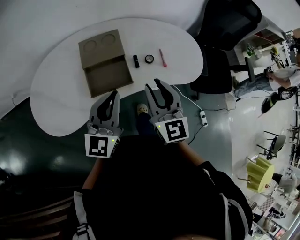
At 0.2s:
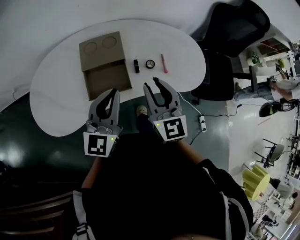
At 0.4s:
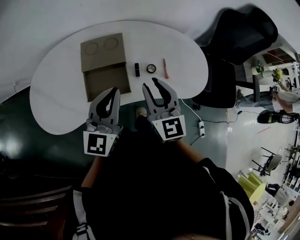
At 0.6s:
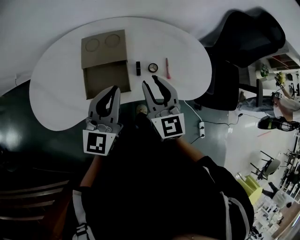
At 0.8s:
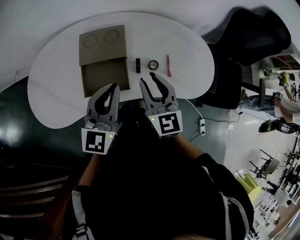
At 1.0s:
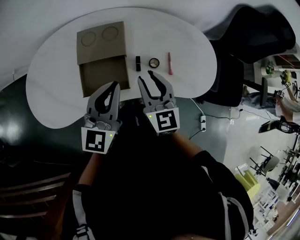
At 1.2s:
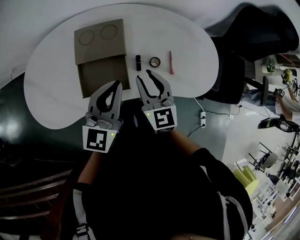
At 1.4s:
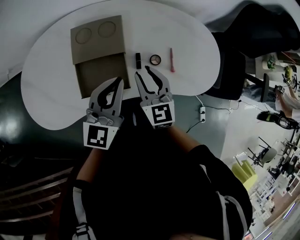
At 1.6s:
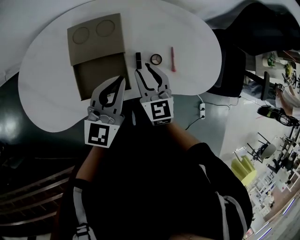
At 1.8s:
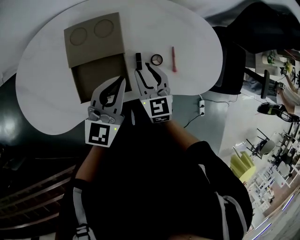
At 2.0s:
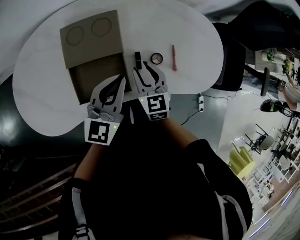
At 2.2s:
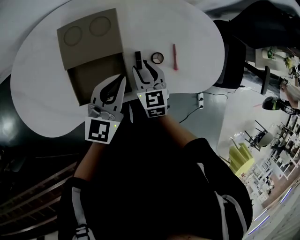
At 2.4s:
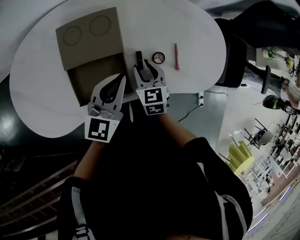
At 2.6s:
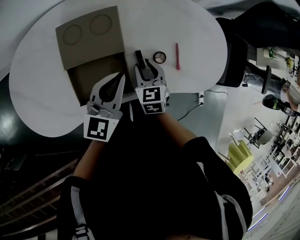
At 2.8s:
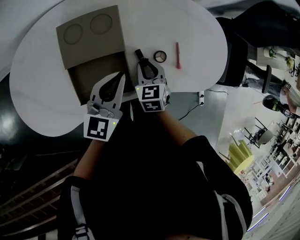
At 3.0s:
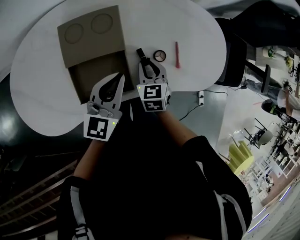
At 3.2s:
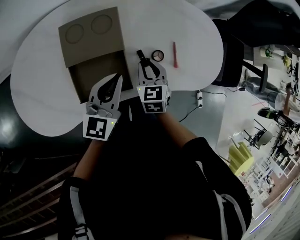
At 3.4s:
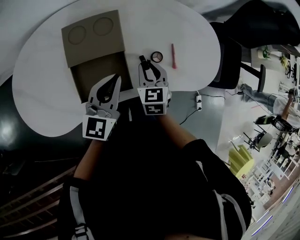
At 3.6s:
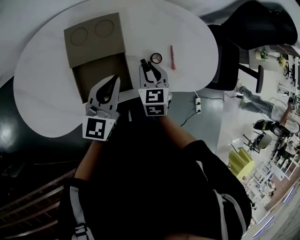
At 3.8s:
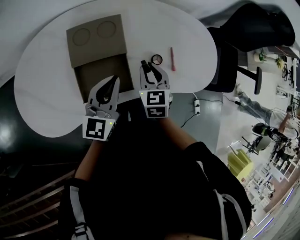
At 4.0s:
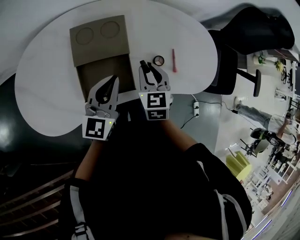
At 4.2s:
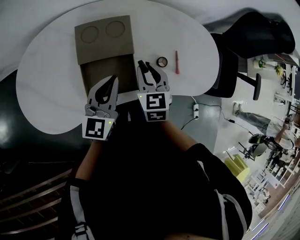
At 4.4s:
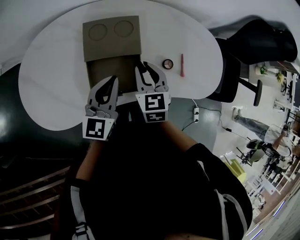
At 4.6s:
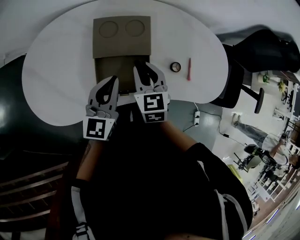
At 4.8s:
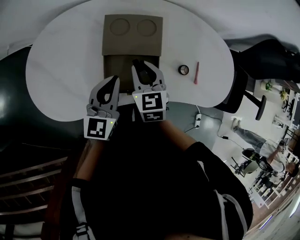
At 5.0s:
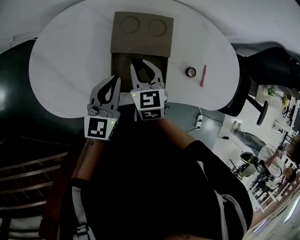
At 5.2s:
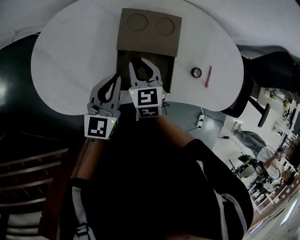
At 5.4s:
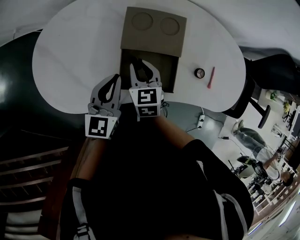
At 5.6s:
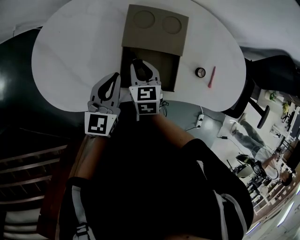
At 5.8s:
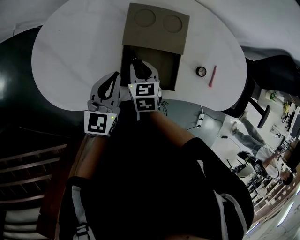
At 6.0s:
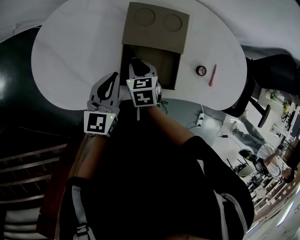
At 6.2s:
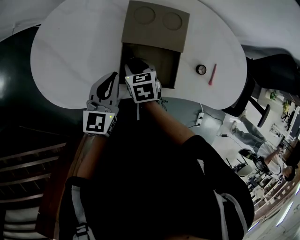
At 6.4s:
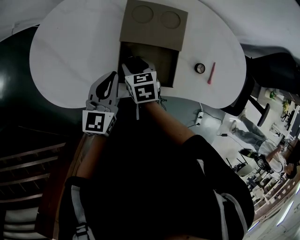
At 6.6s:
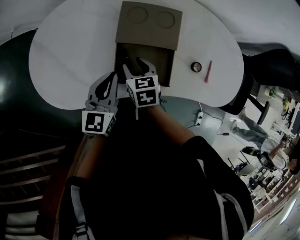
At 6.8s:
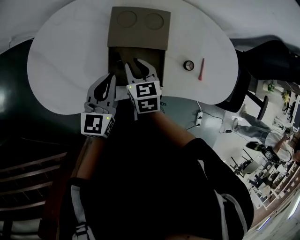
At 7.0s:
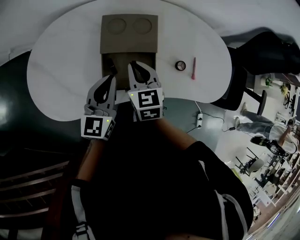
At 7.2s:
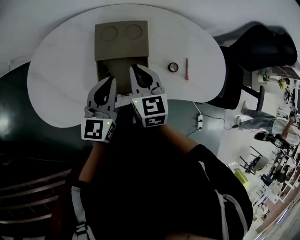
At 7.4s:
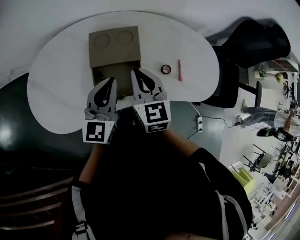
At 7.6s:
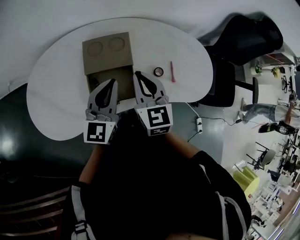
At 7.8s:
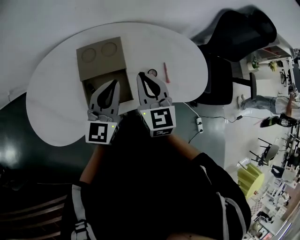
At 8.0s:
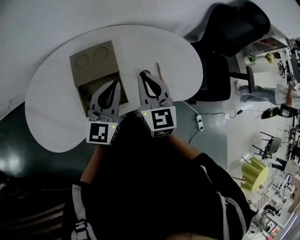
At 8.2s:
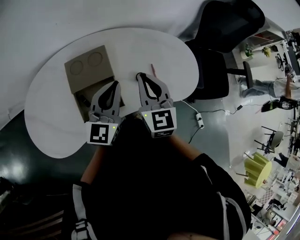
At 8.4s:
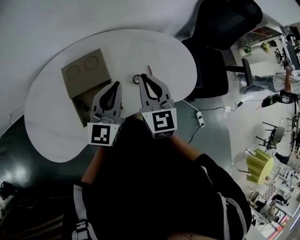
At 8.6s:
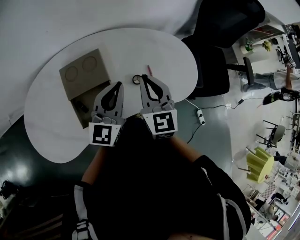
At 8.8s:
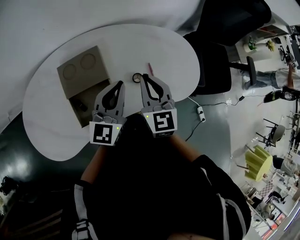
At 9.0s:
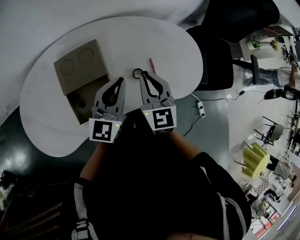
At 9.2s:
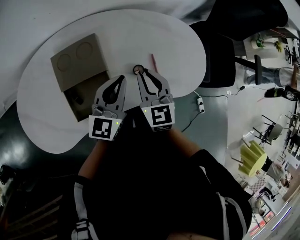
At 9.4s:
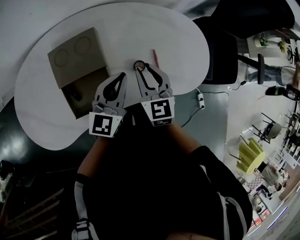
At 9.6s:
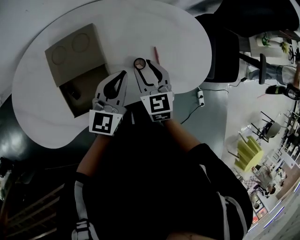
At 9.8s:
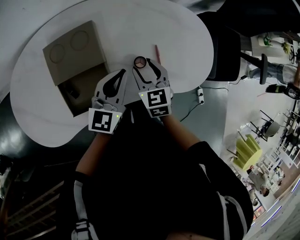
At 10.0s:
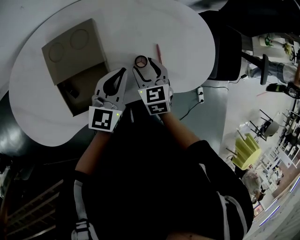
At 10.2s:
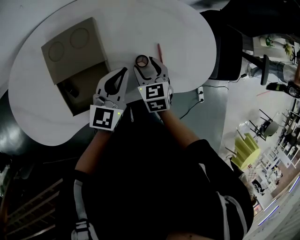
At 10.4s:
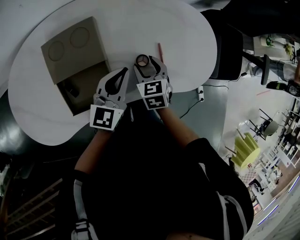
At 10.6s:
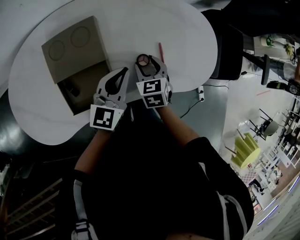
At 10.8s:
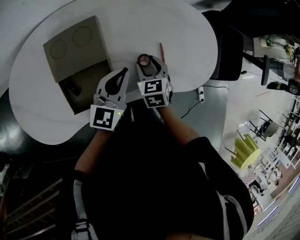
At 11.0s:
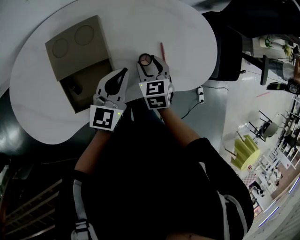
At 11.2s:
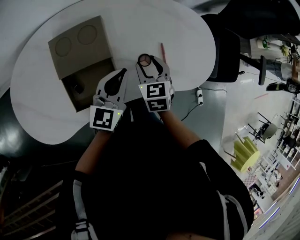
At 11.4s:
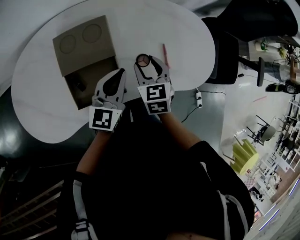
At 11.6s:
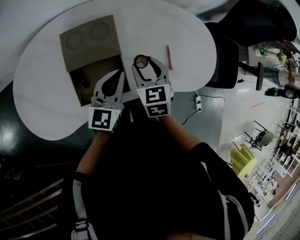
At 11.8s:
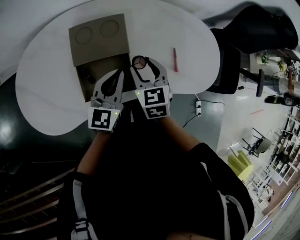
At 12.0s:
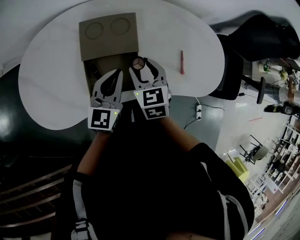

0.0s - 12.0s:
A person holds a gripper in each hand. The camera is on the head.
0.0s - 1.6s: Both grippers travel together forward and downward, about 20 cm.
1.6s - 3.0s: The left gripper moves downward, some 5 cm. The right gripper shifts approximately 10 cm downward, and changes its angle by roughly 30 degrees.
3.0s - 4.4s: The left gripper heads to the left, covering about 5 cm. Meanwhile the right gripper heads upward and to the left, covering about 15 cm.
4.4s - 6.0s: Both grippers travel together to the left and downward, about 15 cm. The right gripper turns by some 20 degrees.
6.0s - 7.6s: The right gripper travels upward and to the right by approximately 30 cm, tips its fingers upward by roughly 40 degrees, and opens, then closes again, while the left gripper moves to the right and upward, approximately 20 cm, and turns by some 20 degrees.
7.6s - 9.0s: The two grippers go about 15 cm to the right and forward.
9.0s - 10.4s: The right gripper is displaced downward by about 20 cm, points its fingers about 30 degrees further downward, and opens its fingers, while the left gripper travels downward by some 10 cm.
10.4s - 12.0s: The right gripper is displaced to the left and upward by approximately 15 cm; the left gripper heads to the left and backward, covering some 15 cm.

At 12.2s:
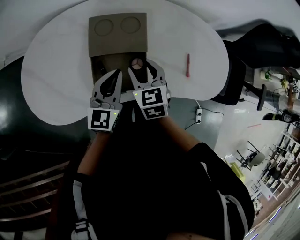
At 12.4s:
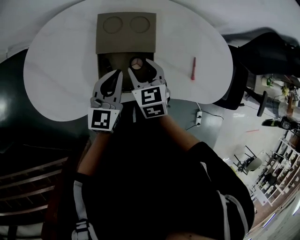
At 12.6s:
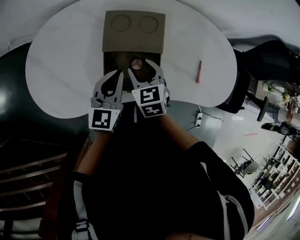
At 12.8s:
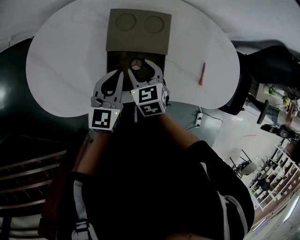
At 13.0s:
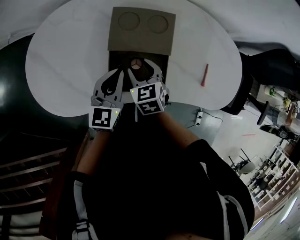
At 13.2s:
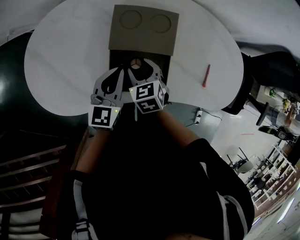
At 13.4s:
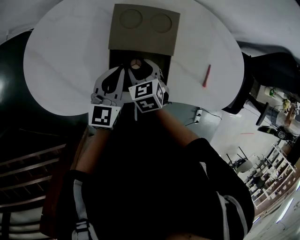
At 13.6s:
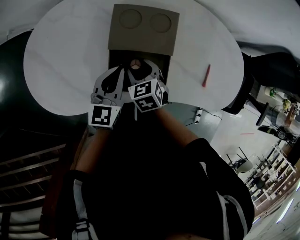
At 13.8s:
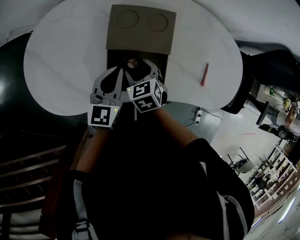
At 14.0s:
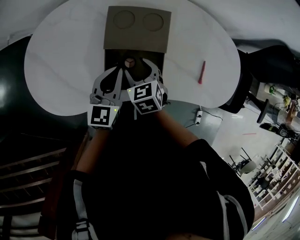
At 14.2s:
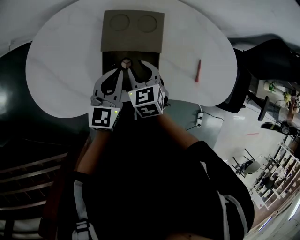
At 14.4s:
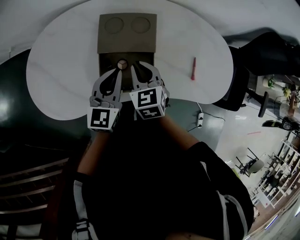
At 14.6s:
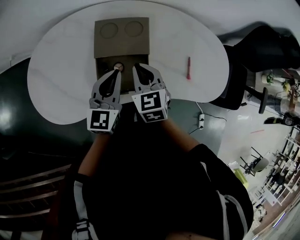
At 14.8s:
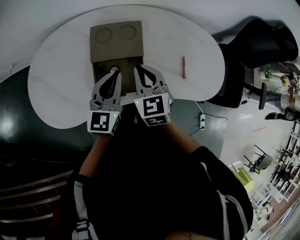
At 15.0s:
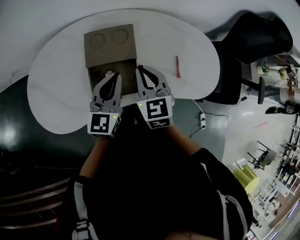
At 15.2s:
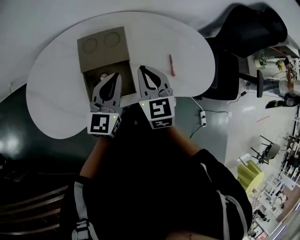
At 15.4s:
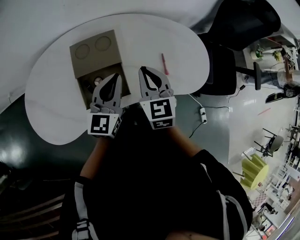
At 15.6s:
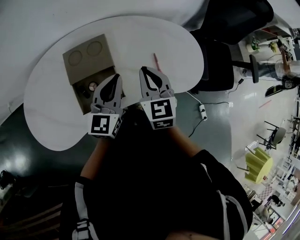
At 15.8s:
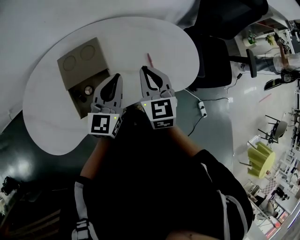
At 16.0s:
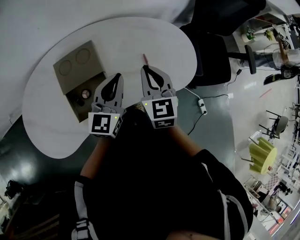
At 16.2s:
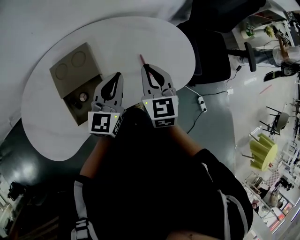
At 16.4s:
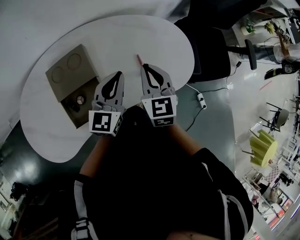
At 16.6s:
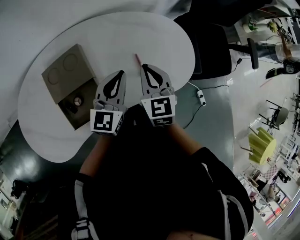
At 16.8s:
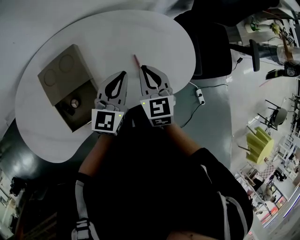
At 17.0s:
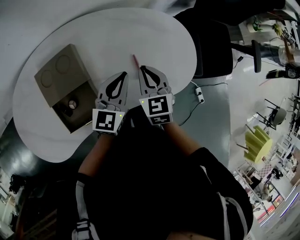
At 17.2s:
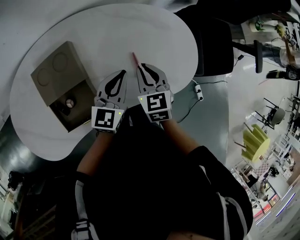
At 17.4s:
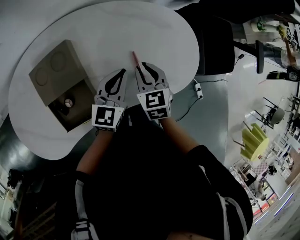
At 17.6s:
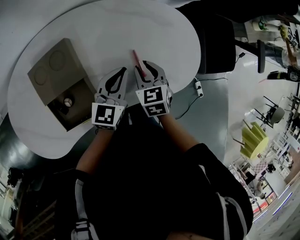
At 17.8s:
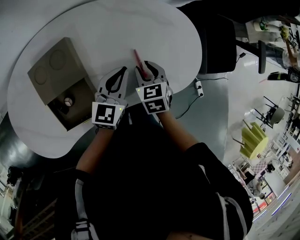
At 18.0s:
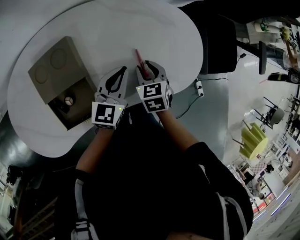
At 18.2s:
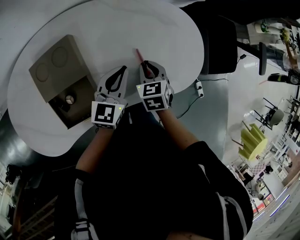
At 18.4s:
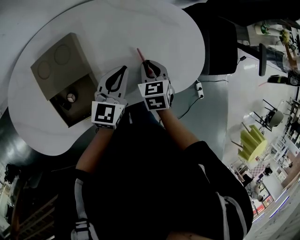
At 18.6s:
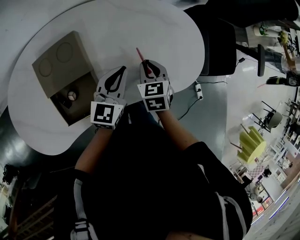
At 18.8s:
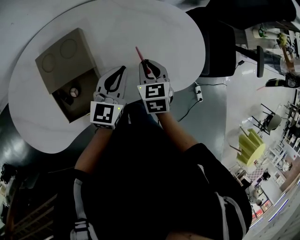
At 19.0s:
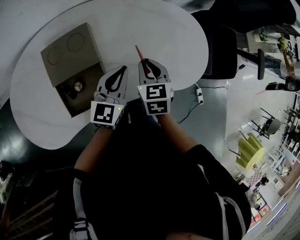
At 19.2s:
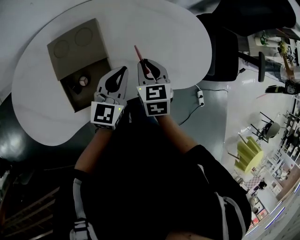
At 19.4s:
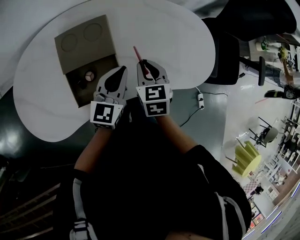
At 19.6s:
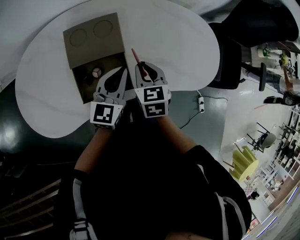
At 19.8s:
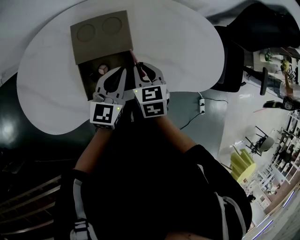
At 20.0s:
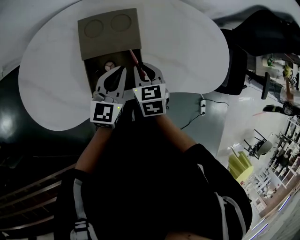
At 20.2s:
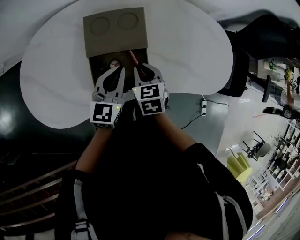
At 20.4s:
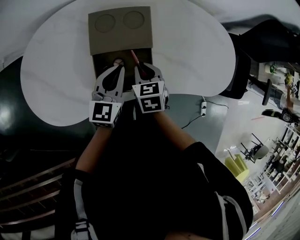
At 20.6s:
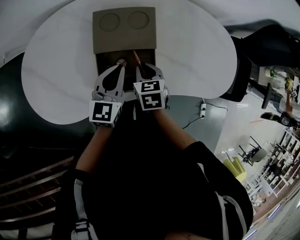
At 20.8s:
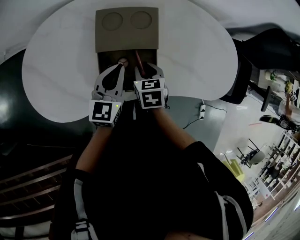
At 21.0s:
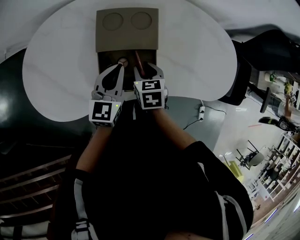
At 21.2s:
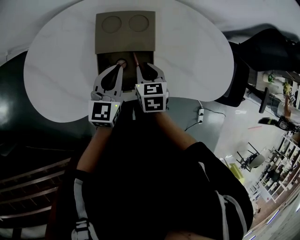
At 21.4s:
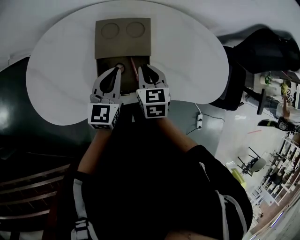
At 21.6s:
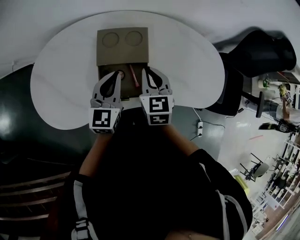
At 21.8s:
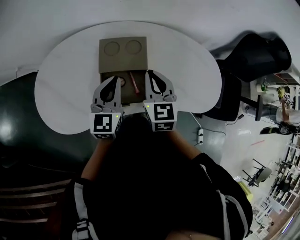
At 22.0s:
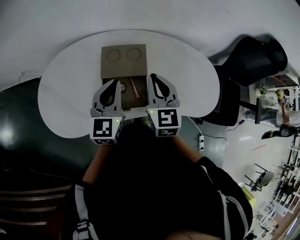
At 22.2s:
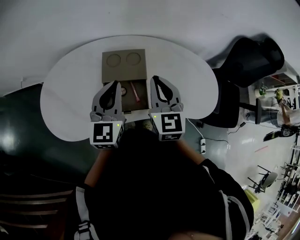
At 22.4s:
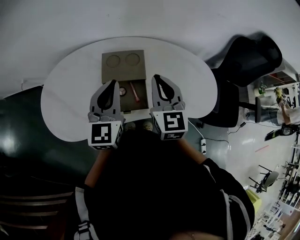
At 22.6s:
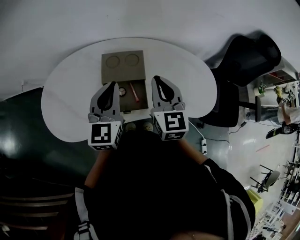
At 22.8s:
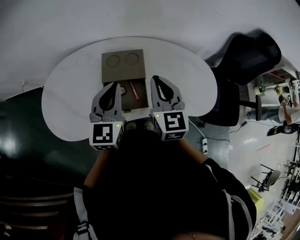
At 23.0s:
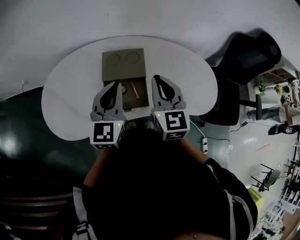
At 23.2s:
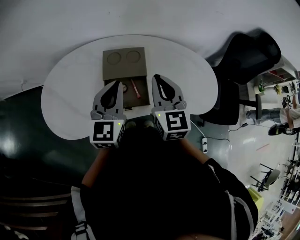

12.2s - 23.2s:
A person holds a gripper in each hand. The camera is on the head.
12.2s - 13.8s: The right gripper shifts roughly 15 cm to the left and downward, and turns by approximately 20 degrees, while the left gripper shifts some 5 cm to the left.
13.8s - 15.4s: The grippers both shift to the right and upward by roughly 25 cm. The right gripper tips its fingers upward by approximately 30 degrees, and closes. Meanwhile the left gripper rotates approximately 20 degrees.
15.4s - 17.0s: The two grippers go approximately 20 cm to the right, downward and forward.
17.0s - 18.4s: The right gripper is displaced downward by some 10 cm.
18.4s - 20.0s: The left gripper moves to the left and backward, some 20 cm. Meanwhile the right gripper travels to the left by some 20 cm.
20.0s - 21.6s: The right gripper goes approximately 10 cm upward. The left gripper goes roughly 10 cm upward and to the left.
21.6s - 23.2s: Both grippers travel together upward, about 15 cm.

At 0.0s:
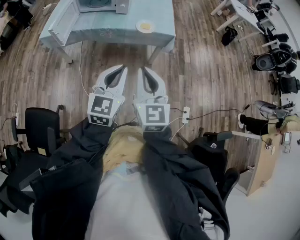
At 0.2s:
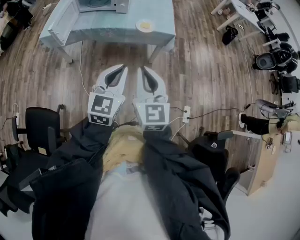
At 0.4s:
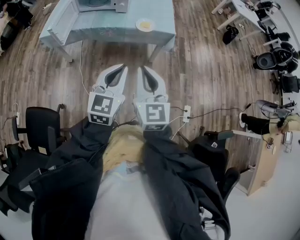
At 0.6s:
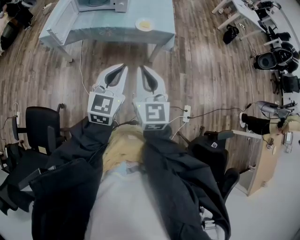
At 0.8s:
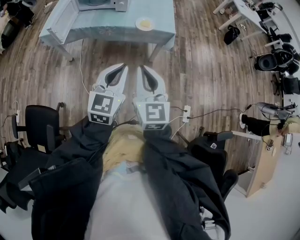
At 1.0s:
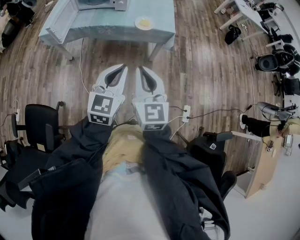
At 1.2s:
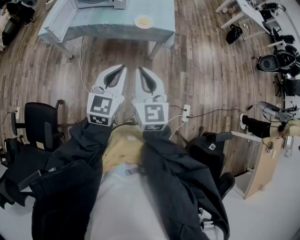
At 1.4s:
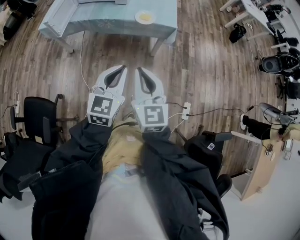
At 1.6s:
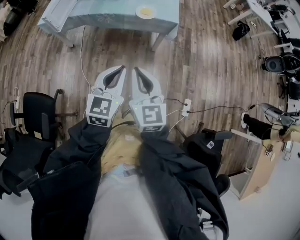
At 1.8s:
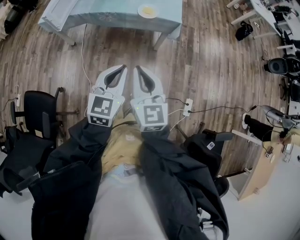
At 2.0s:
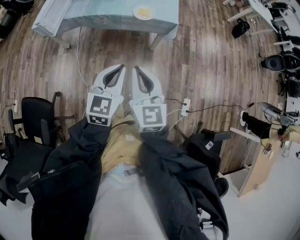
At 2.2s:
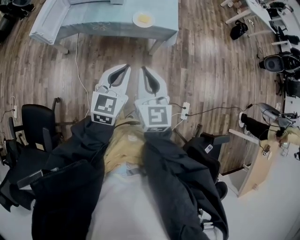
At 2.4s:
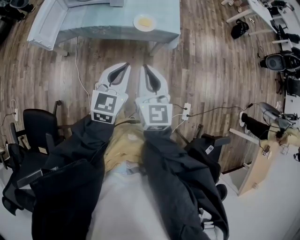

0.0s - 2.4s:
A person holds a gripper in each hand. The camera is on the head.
0.0s - 1.2s: The grippers make only small movements.
1.2s - 2.4s: Both grippers move forward, some 15 cm.
